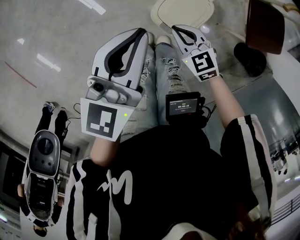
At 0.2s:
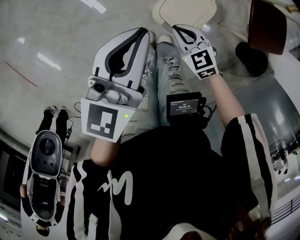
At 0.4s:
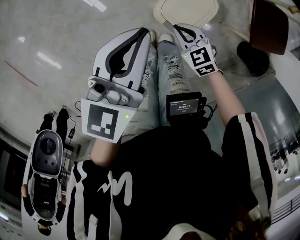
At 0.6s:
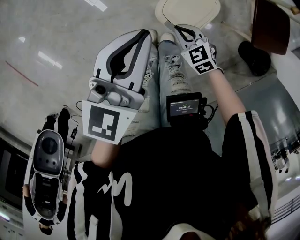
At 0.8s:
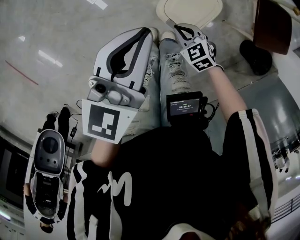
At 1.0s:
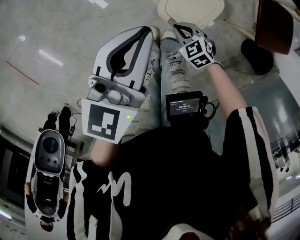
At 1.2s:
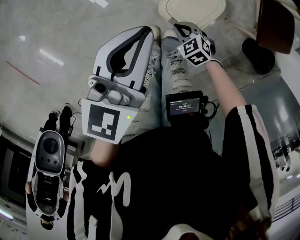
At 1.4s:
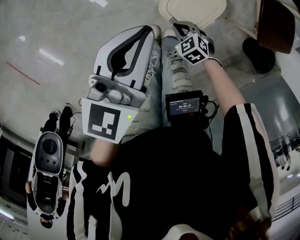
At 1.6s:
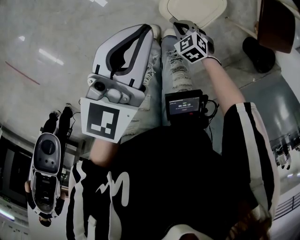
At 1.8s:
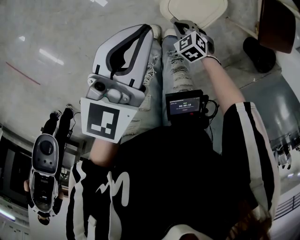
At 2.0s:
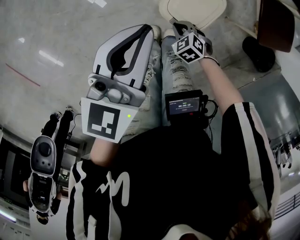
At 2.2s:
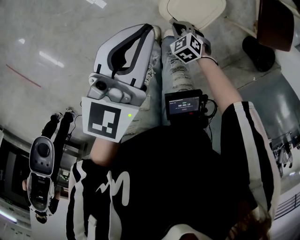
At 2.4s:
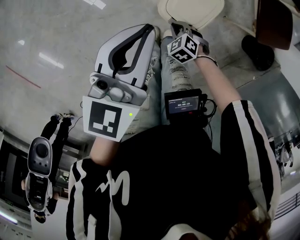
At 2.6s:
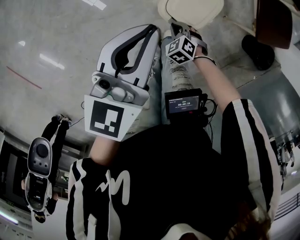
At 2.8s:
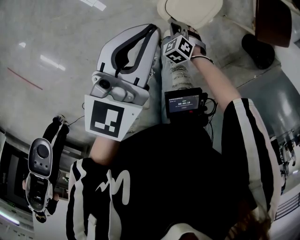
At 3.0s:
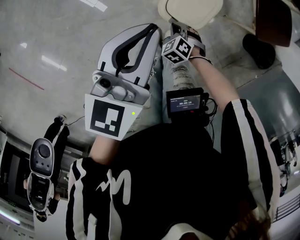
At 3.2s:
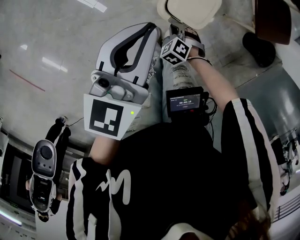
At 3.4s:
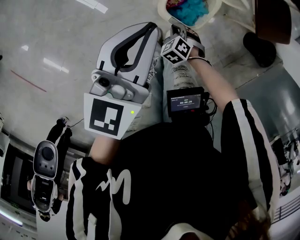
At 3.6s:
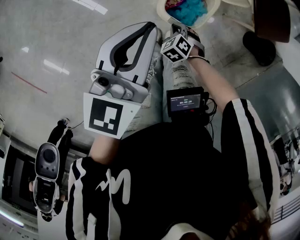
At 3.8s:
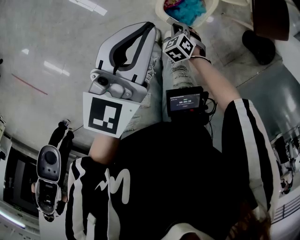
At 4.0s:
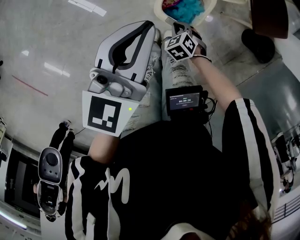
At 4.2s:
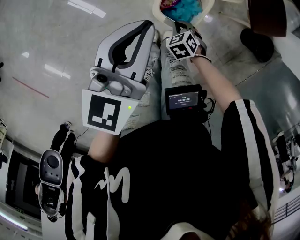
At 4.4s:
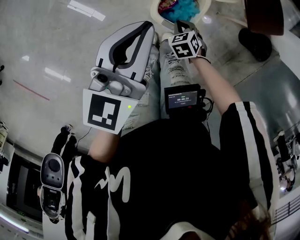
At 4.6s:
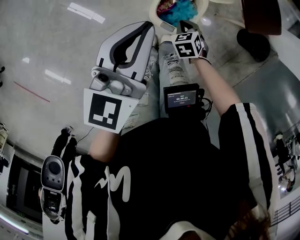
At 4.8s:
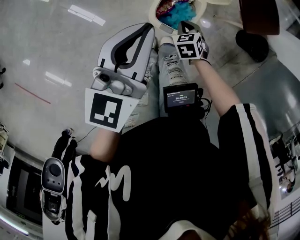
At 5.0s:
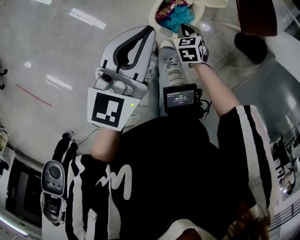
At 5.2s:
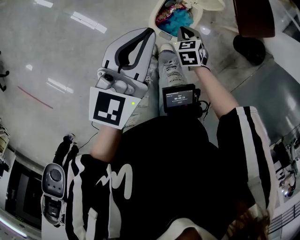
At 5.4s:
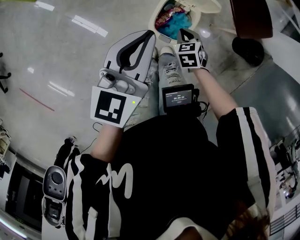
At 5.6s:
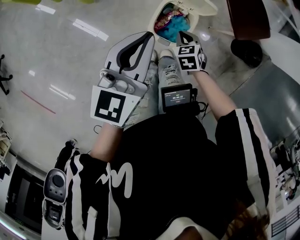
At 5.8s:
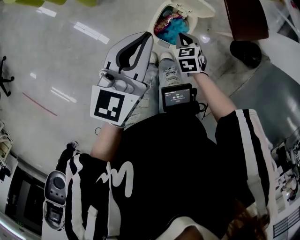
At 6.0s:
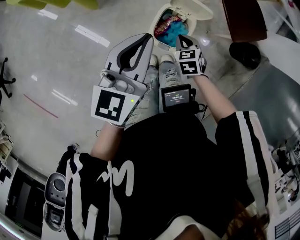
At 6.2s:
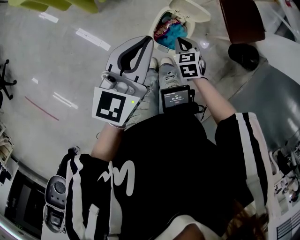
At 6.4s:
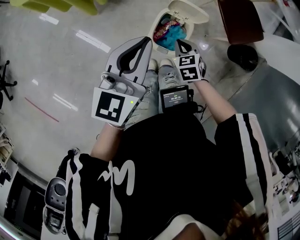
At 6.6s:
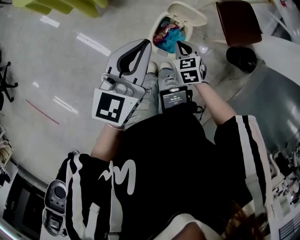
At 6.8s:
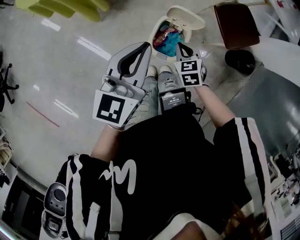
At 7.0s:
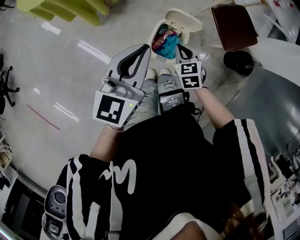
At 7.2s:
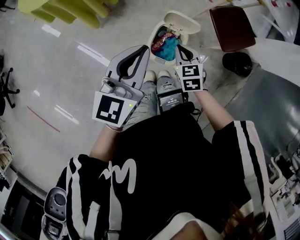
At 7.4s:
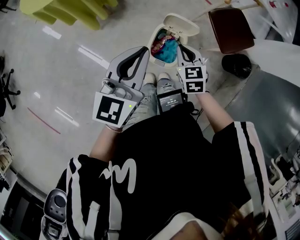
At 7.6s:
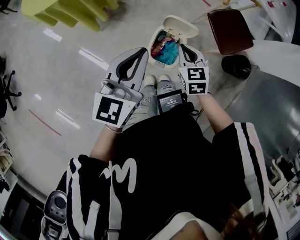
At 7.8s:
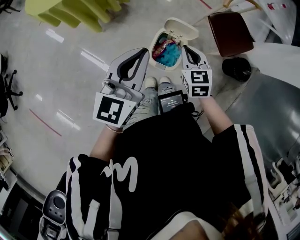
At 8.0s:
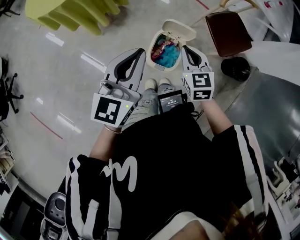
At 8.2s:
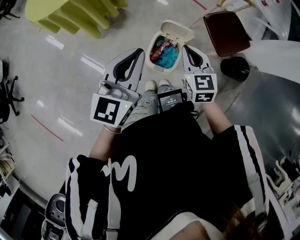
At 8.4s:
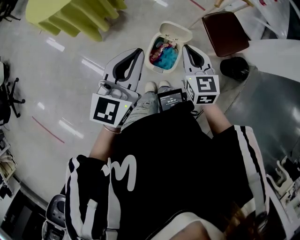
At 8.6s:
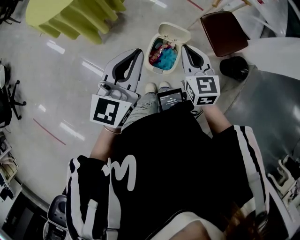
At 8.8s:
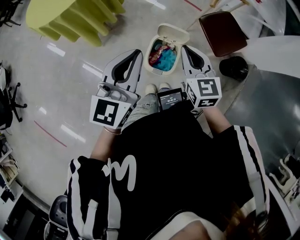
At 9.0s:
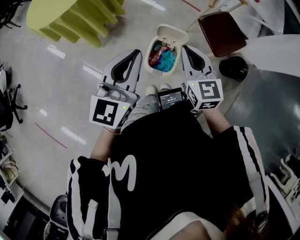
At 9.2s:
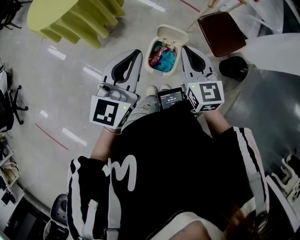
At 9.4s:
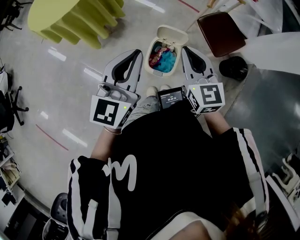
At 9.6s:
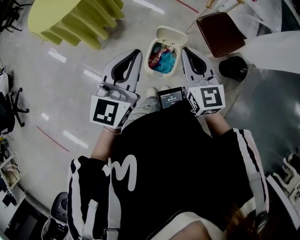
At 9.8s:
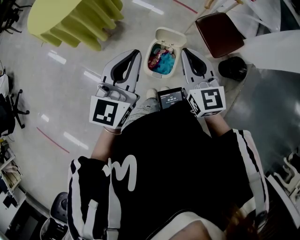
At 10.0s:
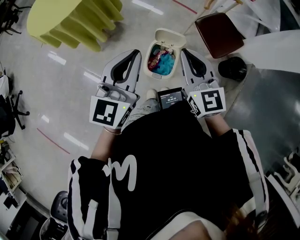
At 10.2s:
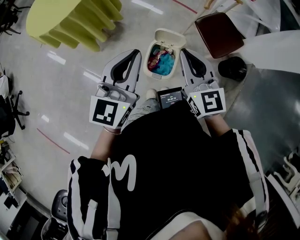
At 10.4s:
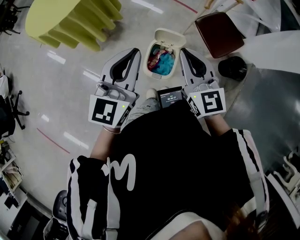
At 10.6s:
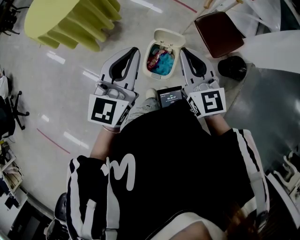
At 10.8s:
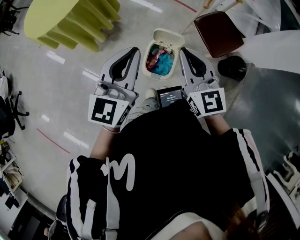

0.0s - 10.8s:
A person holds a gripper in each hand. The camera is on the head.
0.0s - 1.6s: The right gripper heads downward, covering approximately 10 cm, and turns by about 20 degrees.
1.6s - 3.0s: The grippers stay close to where they were, moving slightly.
3.0s - 4.6s: The right gripper moves some 10 cm, and turns by approximately 30 degrees.
4.6s - 6.2s: The left gripper heads upward, covering about 10 cm. Meanwhile the right gripper travels upward by approximately 15 cm.
6.2s - 7.8s: The left gripper goes approximately 10 cm upward. The right gripper goes roughly 20 cm upward, and turns by roughly 20 degrees.
7.8s - 9.2s: The right gripper is displaced upward by some 15 cm. The left gripper moves about 5 cm.
9.2s - 10.8s: The grippers make only small movements.

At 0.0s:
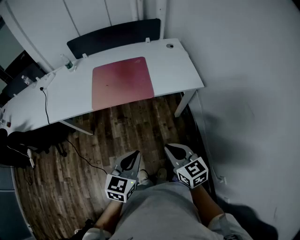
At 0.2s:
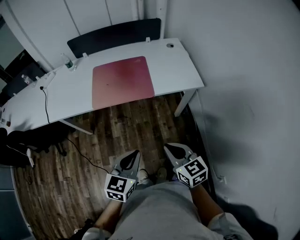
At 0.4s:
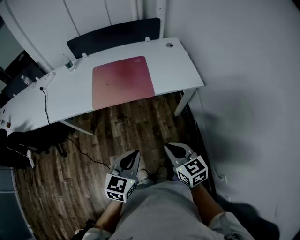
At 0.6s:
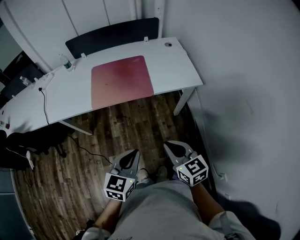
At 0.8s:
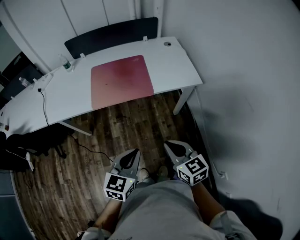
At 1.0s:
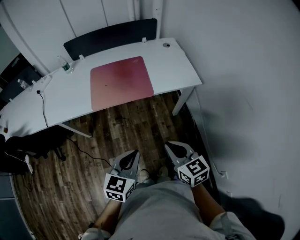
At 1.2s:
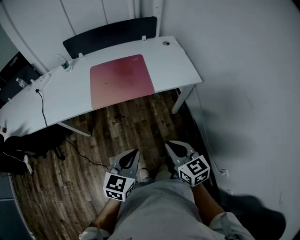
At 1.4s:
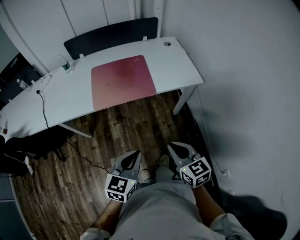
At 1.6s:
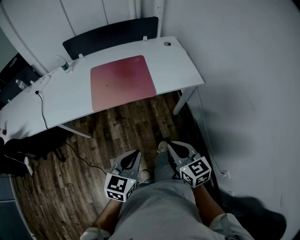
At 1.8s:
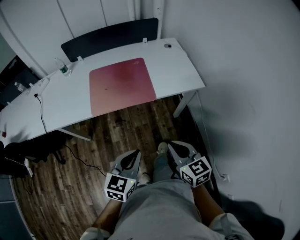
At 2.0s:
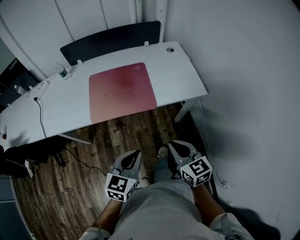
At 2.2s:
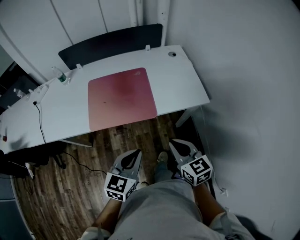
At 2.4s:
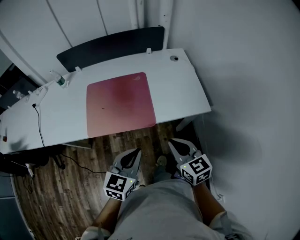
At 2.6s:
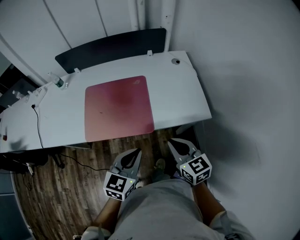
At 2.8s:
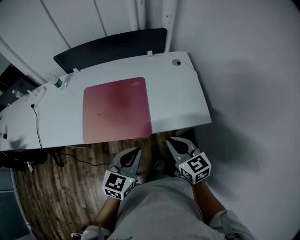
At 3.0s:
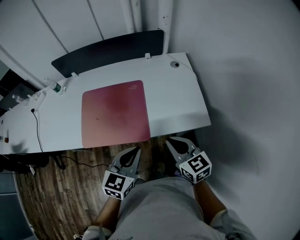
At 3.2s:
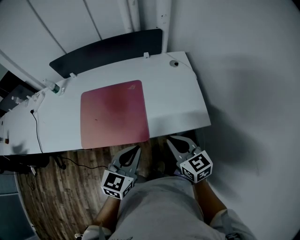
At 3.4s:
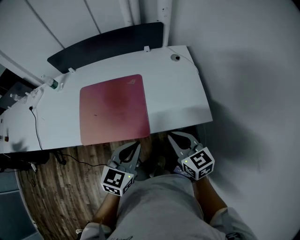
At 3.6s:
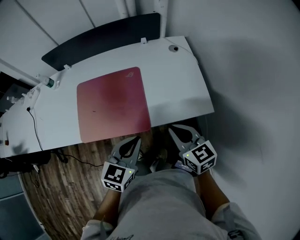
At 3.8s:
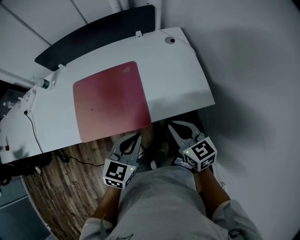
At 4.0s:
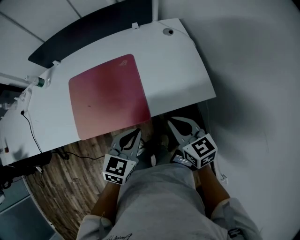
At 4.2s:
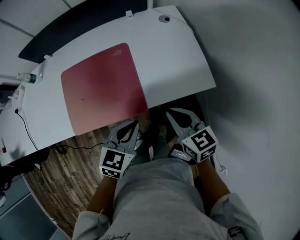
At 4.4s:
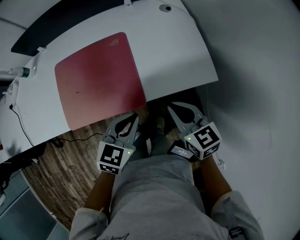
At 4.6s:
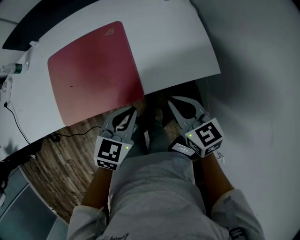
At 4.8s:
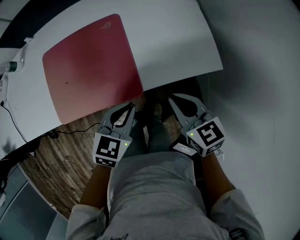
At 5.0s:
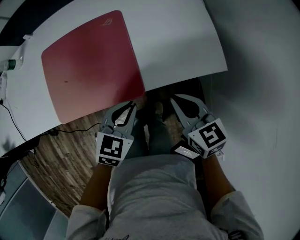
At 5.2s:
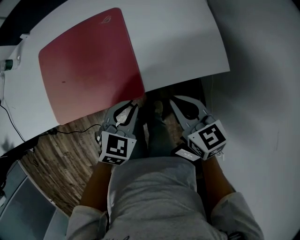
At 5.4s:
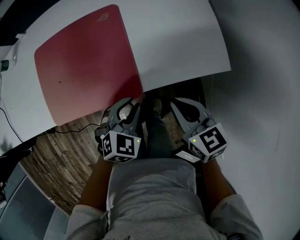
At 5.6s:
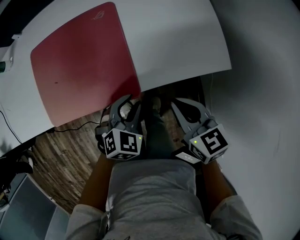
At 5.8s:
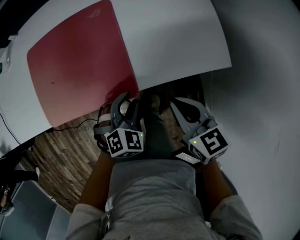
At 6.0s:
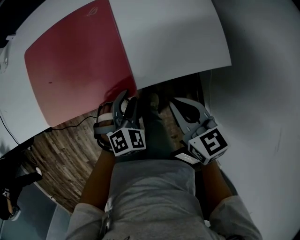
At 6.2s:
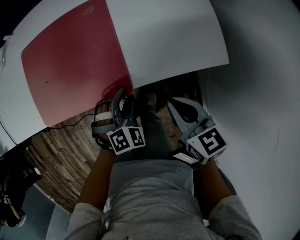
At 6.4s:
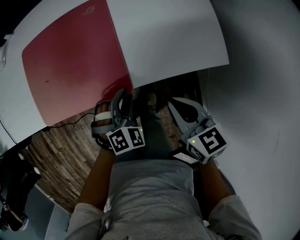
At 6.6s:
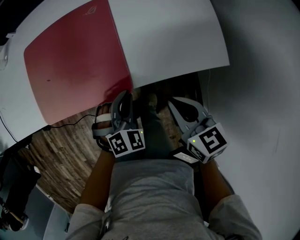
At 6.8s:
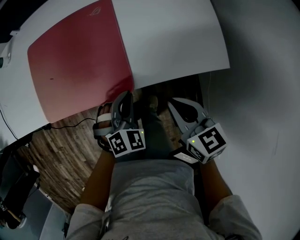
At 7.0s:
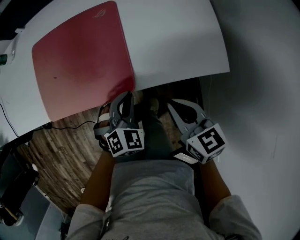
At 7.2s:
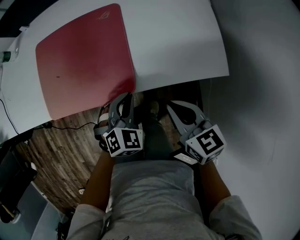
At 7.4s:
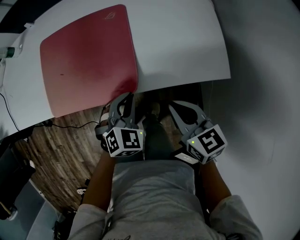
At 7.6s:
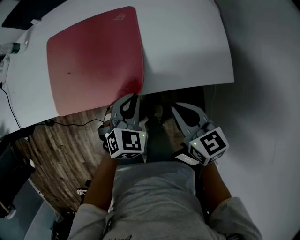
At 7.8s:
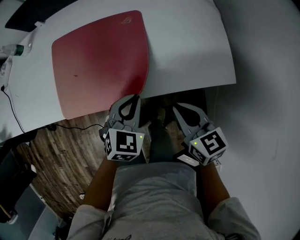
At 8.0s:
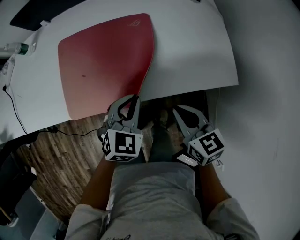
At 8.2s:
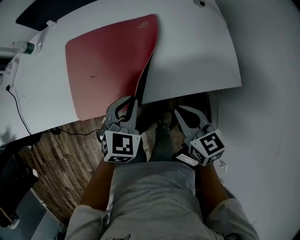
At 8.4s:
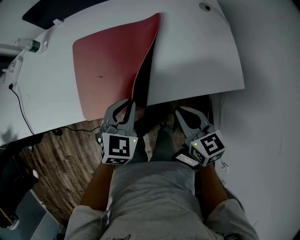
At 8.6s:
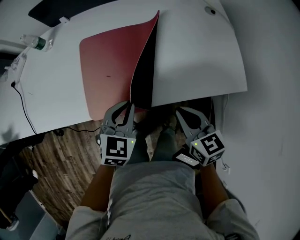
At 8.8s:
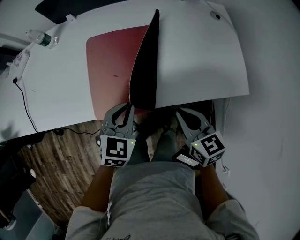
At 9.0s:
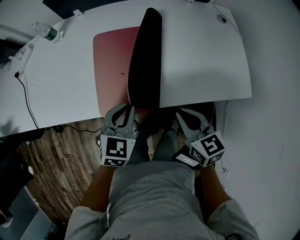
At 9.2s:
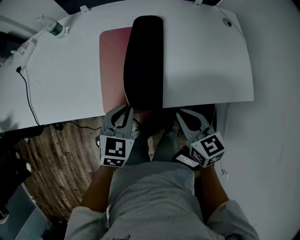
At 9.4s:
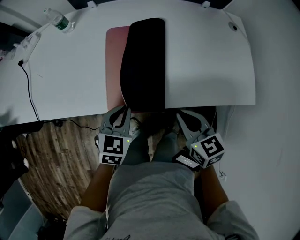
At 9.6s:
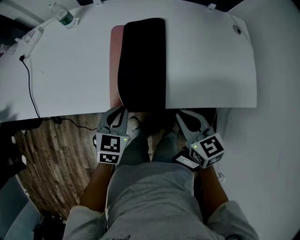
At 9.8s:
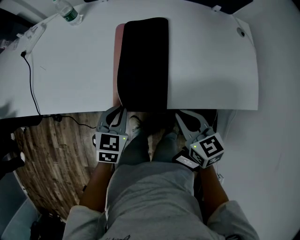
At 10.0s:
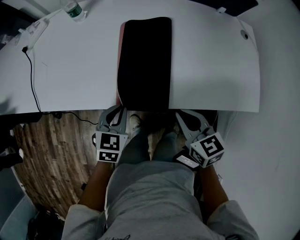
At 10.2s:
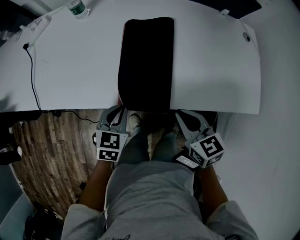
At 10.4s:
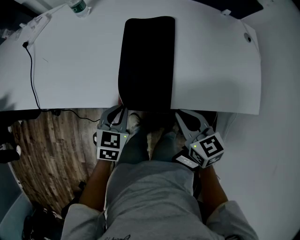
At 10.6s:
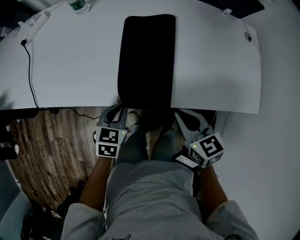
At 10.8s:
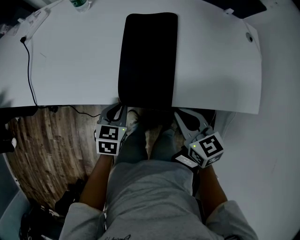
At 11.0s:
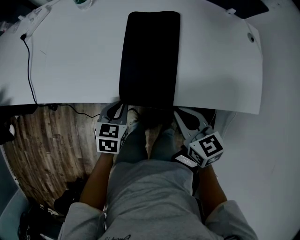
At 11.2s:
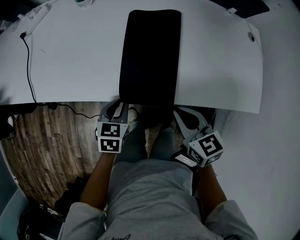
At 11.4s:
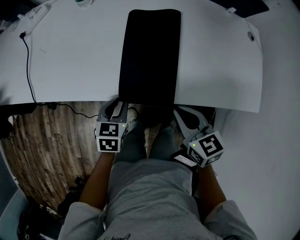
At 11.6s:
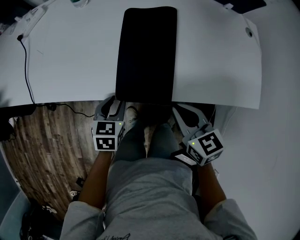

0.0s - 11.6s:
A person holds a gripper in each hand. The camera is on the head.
0.0s - 1.4s: The grippers make only small movements.
1.4s - 2.8s: The grippers both shift forward by some 30 cm.
2.8s - 4.4s: The two grippers go roughly 10 cm downward and forward.
4.4s - 5.8s: The right gripper goes about 10 cm downward. The left gripper goes approximately 15 cm downward, swivels about 40 degrees, and opens up.
5.8s - 7.2s: The left gripper closes up.
7.2s - 8.8s: Both grippers travel together to the left, roughly 20 cm. The left gripper rotates about 30 degrees.
8.8s - 10.2s: The left gripper heads to the left and downward, covering roughly 15 cm, while the right gripper travels to the left by some 15 cm.
10.2s - 11.6s: The left gripper shifts by roughly 5 cm, and opens its fingers.

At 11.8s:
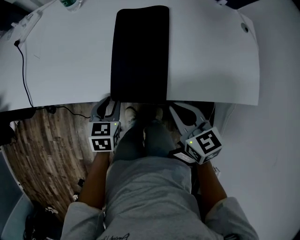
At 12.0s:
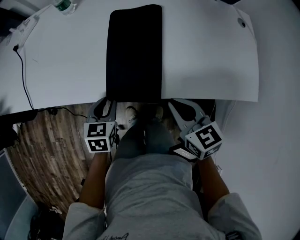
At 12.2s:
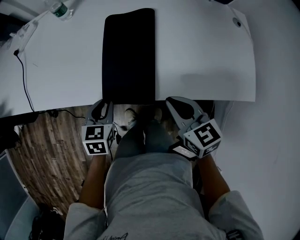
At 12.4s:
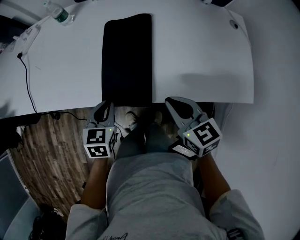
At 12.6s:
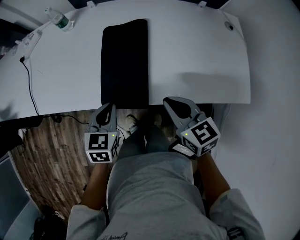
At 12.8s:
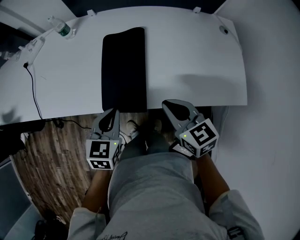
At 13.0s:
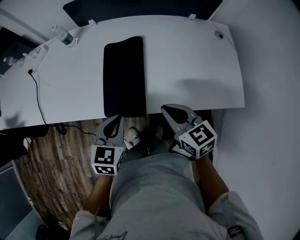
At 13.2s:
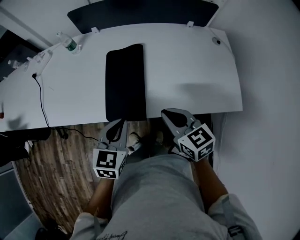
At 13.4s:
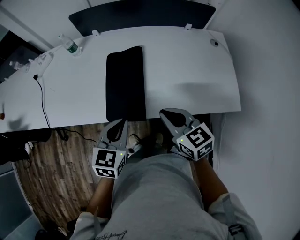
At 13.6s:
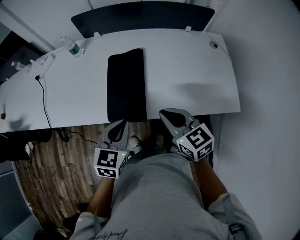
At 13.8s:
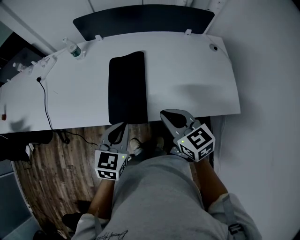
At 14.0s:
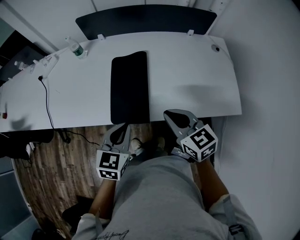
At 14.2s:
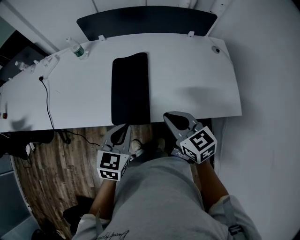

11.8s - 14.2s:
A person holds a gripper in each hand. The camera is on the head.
11.8s - 13.0s: The right gripper travels upward and to the right by about 10 cm; the left gripper goes roughly 20 cm upward and to the right, and closes its fingers.
13.0s - 14.2s: The grippers make only small movements.
